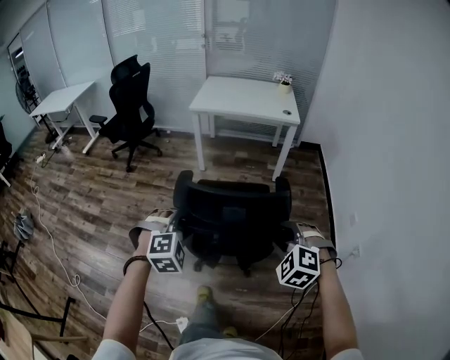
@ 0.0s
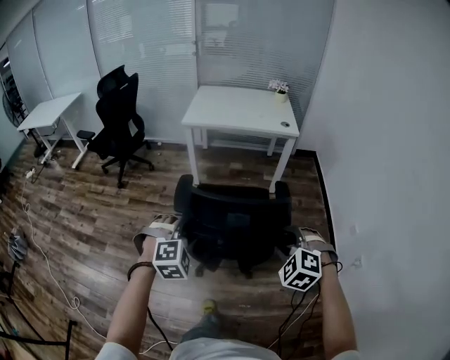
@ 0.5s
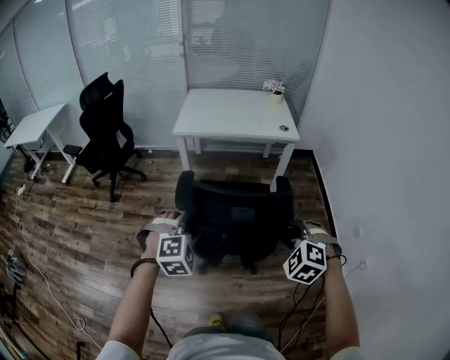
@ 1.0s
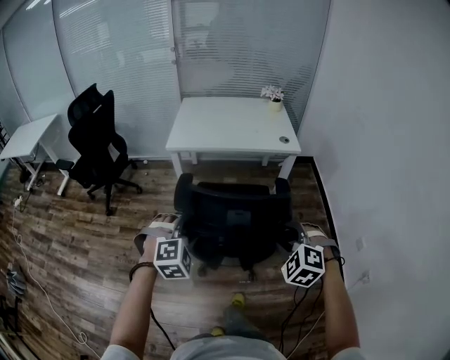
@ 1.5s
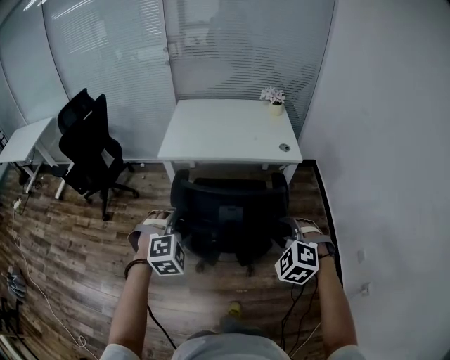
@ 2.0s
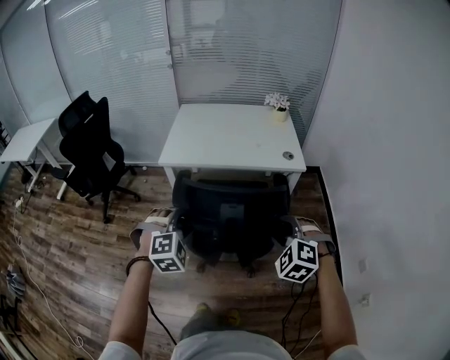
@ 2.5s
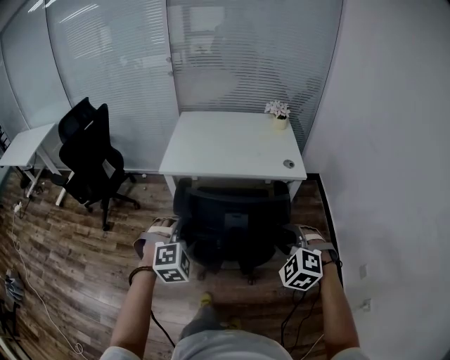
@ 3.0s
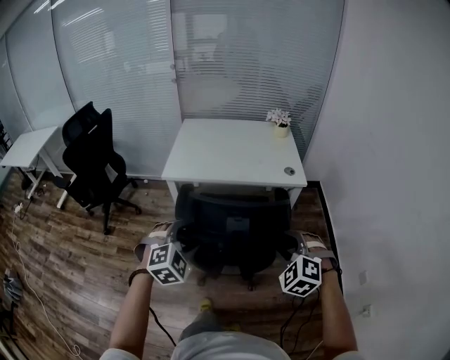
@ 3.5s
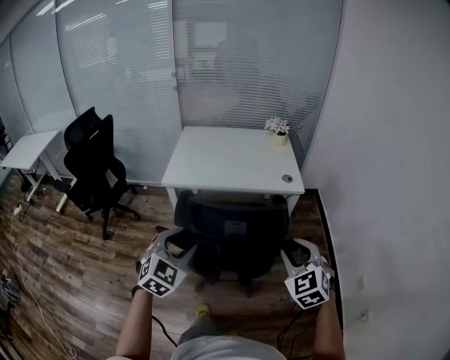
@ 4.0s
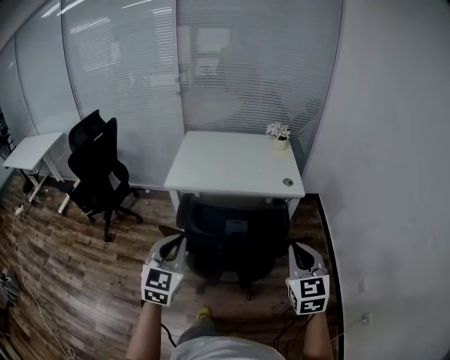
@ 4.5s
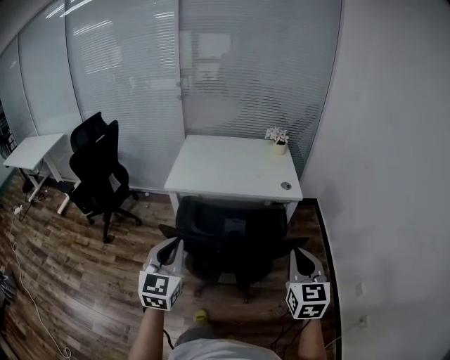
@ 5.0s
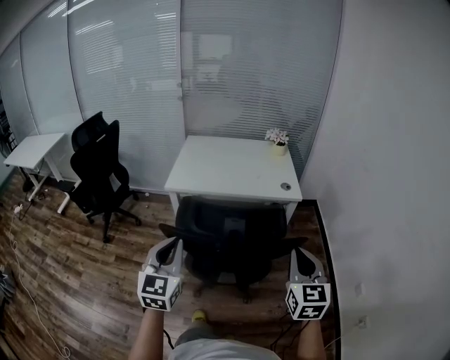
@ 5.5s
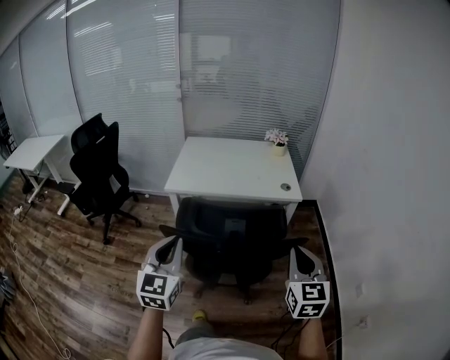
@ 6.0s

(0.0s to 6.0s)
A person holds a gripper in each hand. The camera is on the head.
0.0s - 2.0s: The pair of grippers is taken forward, approximately 50 cm.
2.0s - 4.0s: The grippers both shift upward by approximately 5 cm. The left gripper turns by roughly 40 degrees, while the right gripper turns by approximately 30 degrees.
4.0s - 6.0s: The right gripper goes some 5 cm upward, changes its angle by about 30 degrees, and closes up. The left gripper moves upward and backward, about 10 cm, changes its angle by some 40 degrees, and closes its fingers.

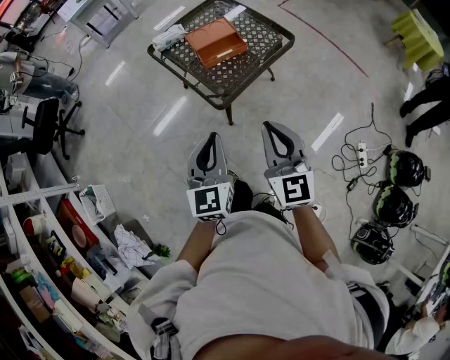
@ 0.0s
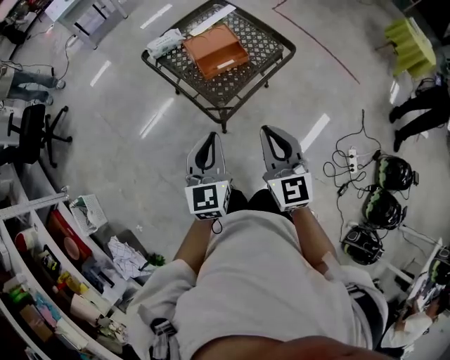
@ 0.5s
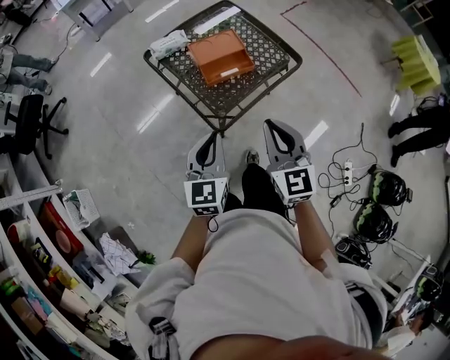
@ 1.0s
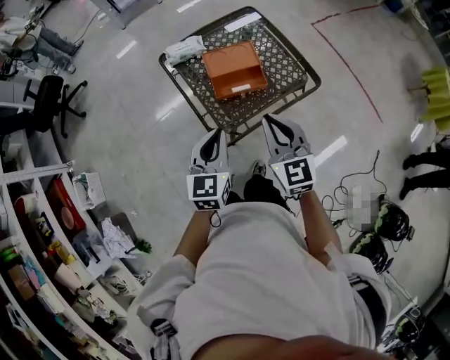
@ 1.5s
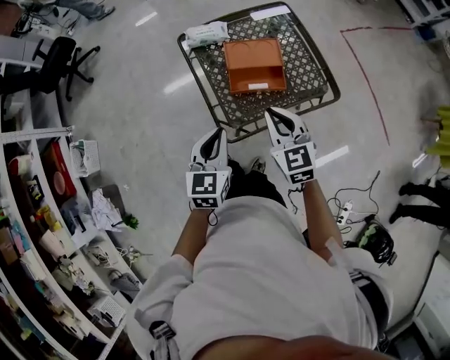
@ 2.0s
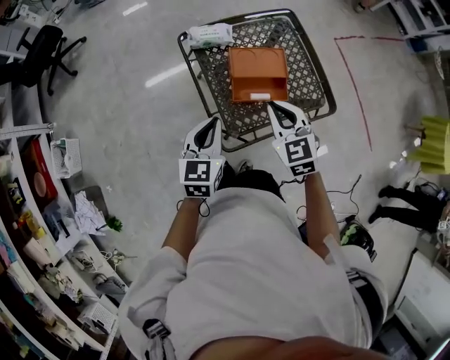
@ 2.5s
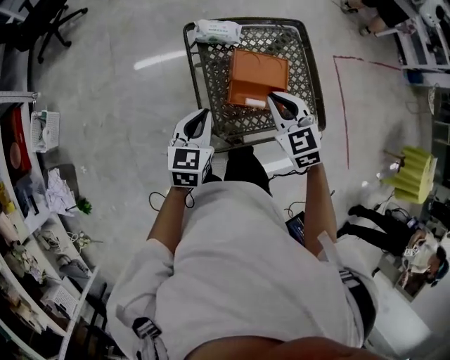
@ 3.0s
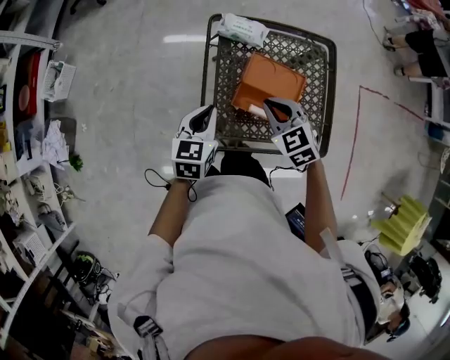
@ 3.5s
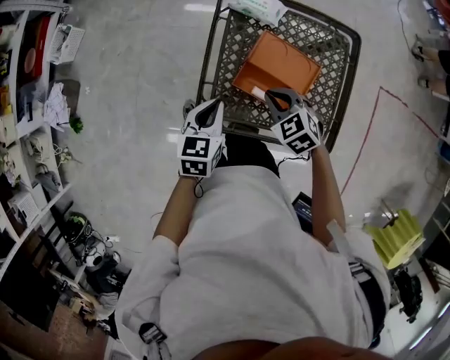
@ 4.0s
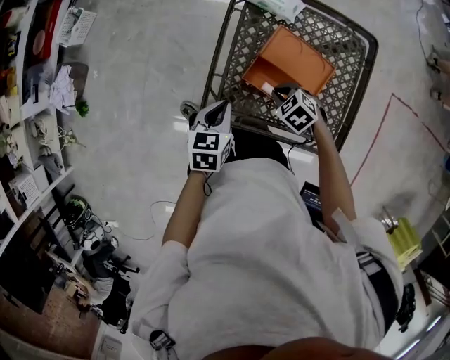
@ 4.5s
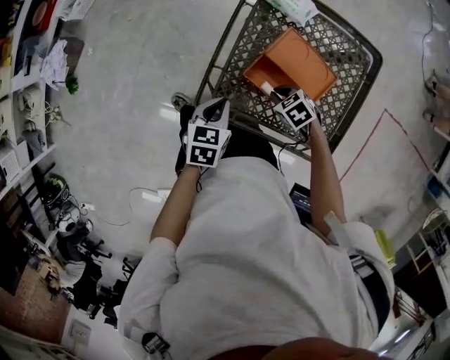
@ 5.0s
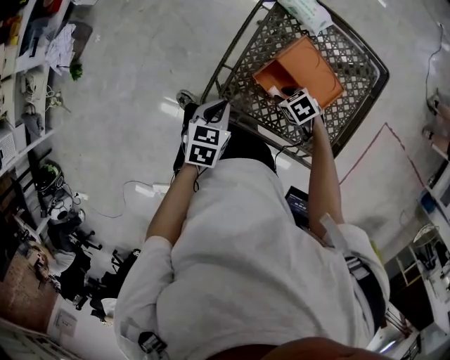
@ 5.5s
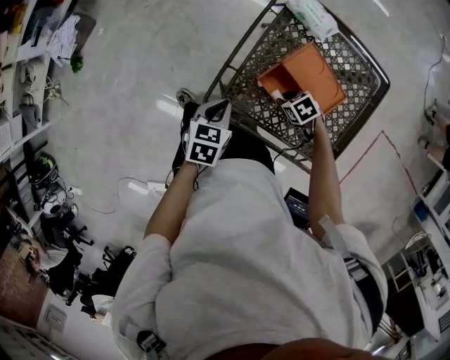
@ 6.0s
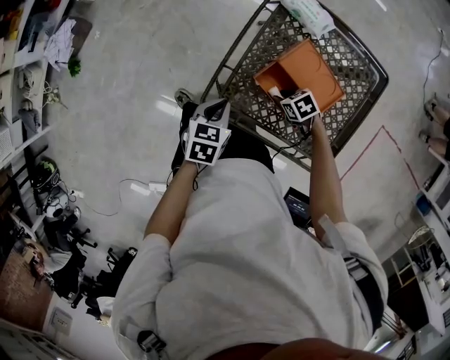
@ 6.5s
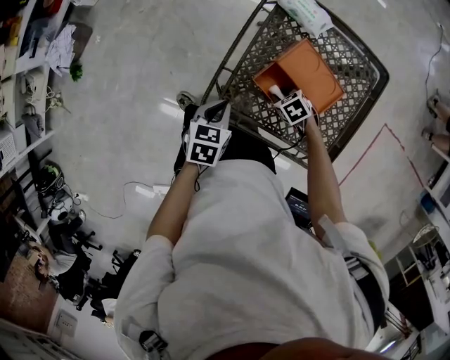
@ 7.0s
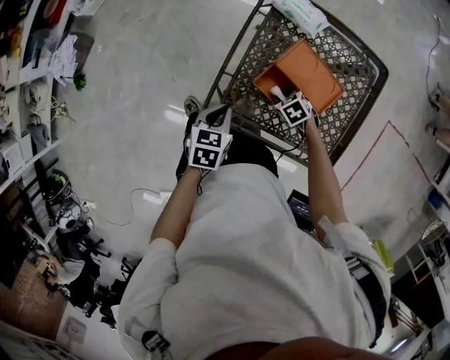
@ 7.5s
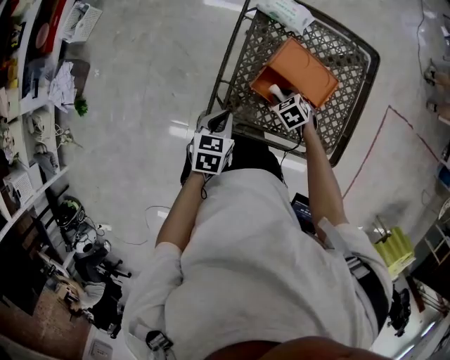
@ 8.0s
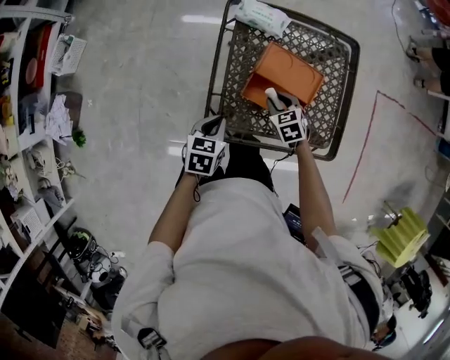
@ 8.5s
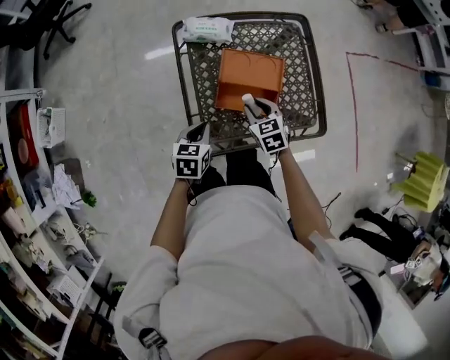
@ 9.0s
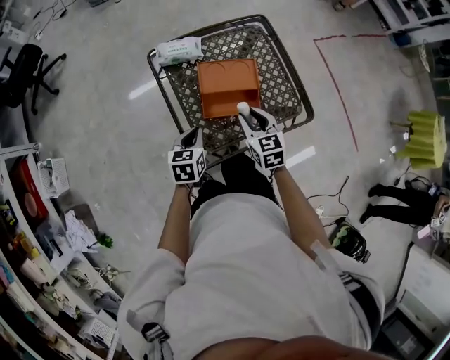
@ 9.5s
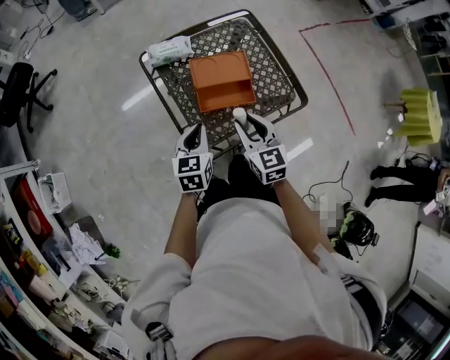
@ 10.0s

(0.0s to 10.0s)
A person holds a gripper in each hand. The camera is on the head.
0.0s - 2.0s: The grippers both shift forward by some 30 cm. The right gripper rotates roughly 30 degrees, while the left gripper rotates about 20 degrees.
2.0s - 4.0s: The right gripper ends up some 20 cm from where it was, and angles its fingers downward, by roughly 30 degrees. Meanwhile the left gripper ends up approximately 15 cm from where it was, and turns by roughly 30 degrees.
4.0s - 6.0s: The left gripper shifts roughly 10 cm downward. Meanwhile the right gripper is displaced downward by approximately 20 cm, and swivels approximately 30 degrees.
6.0s - 8.0s: The right gripper turns by roughly 20 degrees.
8.0s - 10.0s: The left gripper moves upward, some 10 cm, and turns by roughly 40 degrees. The right gripper is displaced upward by about 25 cm, and tilts its fingers approximately 40 degrees upward.

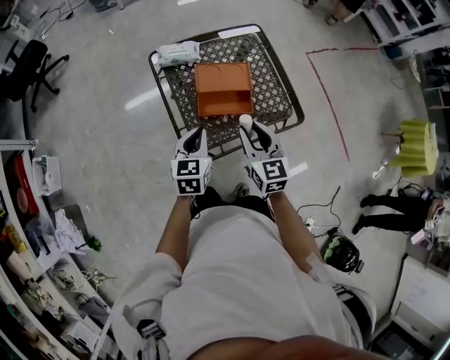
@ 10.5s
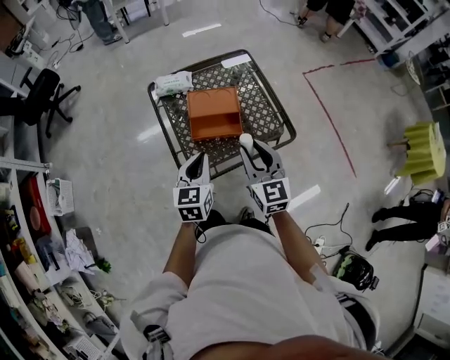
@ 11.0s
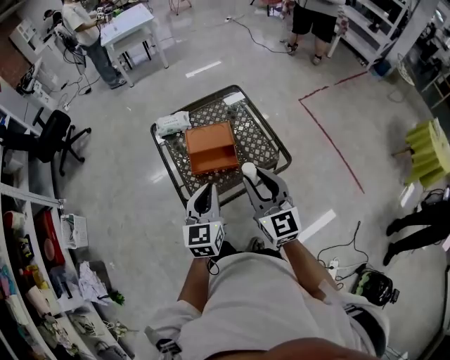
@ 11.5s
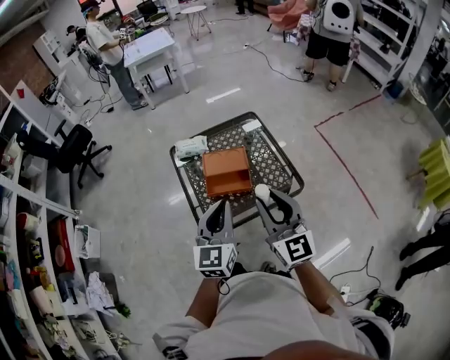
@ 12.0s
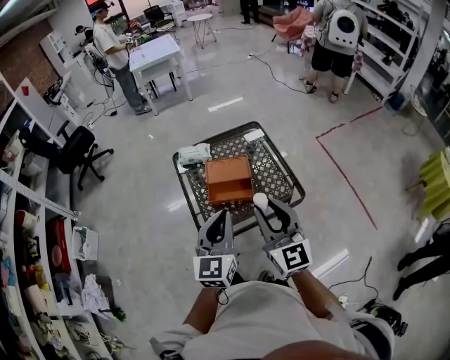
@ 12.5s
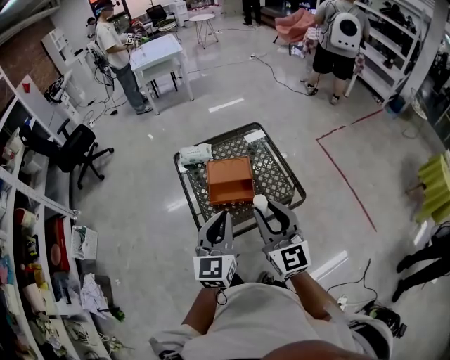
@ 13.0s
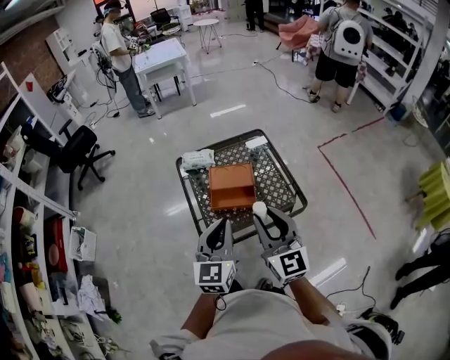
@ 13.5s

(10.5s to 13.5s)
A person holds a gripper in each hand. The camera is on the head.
10.5s - 12.0s: The right gripper goes about 25 cm upward, backward and to the right, and swivels approximately 30 degrees, while the left gripper travels upward, to the right and backward by some 25 cm, and rotates roughly 30 degrees.
12.0s - 13.5s: The grippers make only small movements.

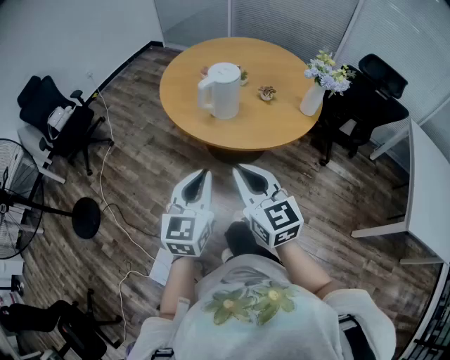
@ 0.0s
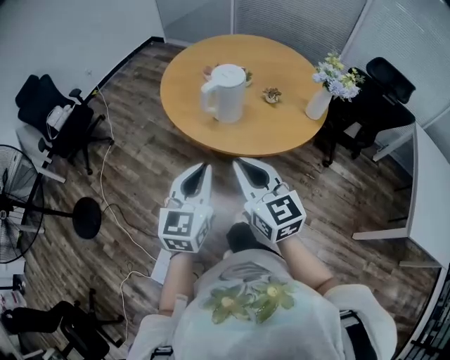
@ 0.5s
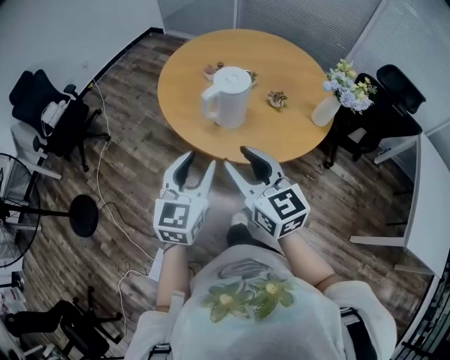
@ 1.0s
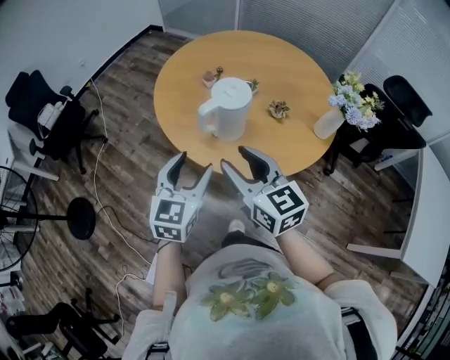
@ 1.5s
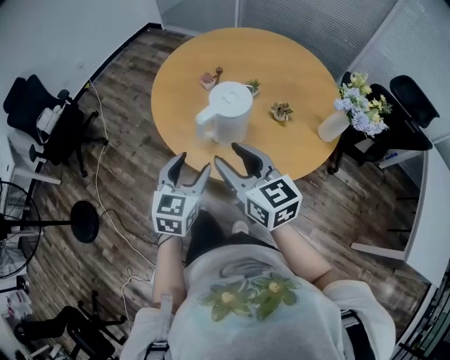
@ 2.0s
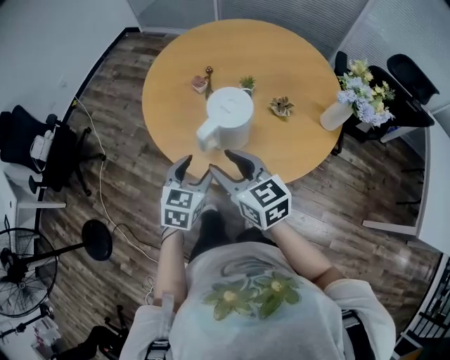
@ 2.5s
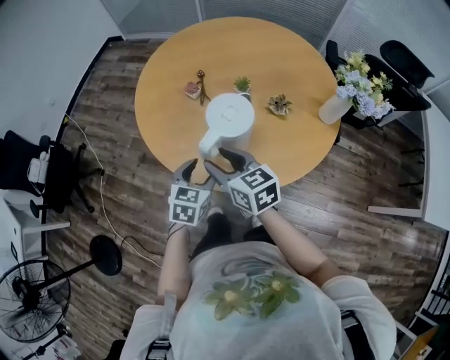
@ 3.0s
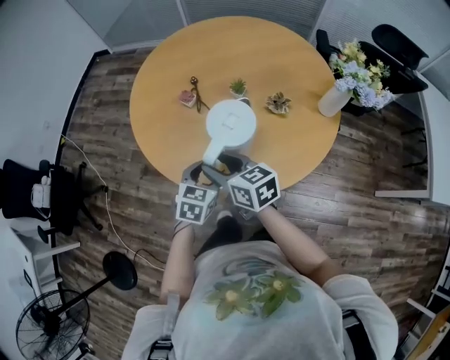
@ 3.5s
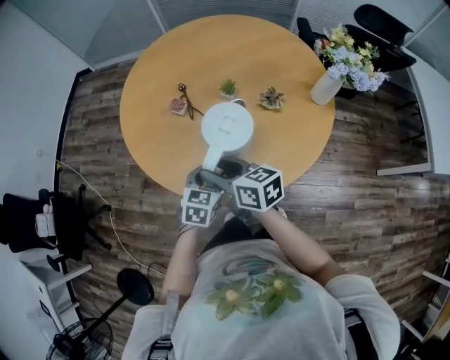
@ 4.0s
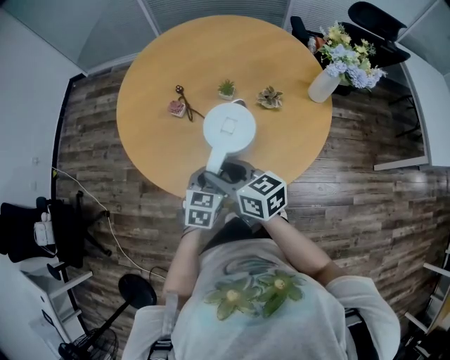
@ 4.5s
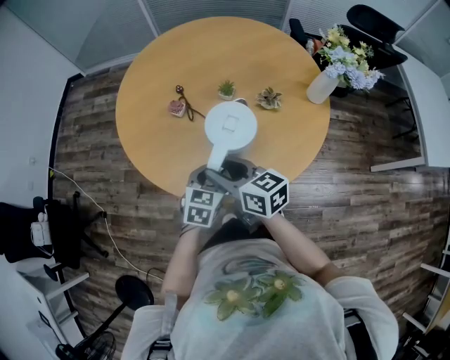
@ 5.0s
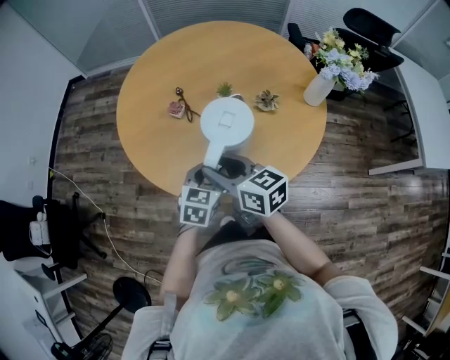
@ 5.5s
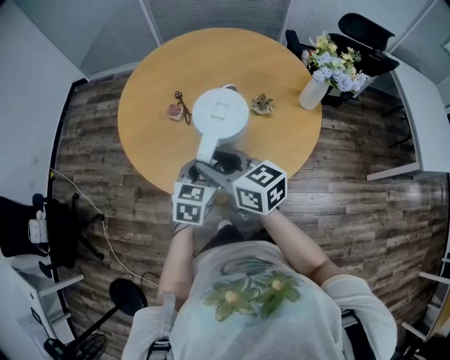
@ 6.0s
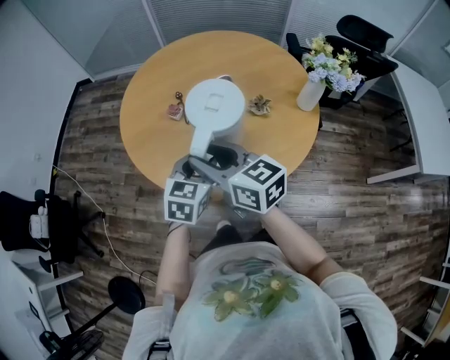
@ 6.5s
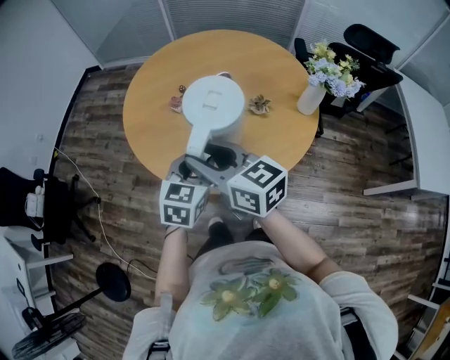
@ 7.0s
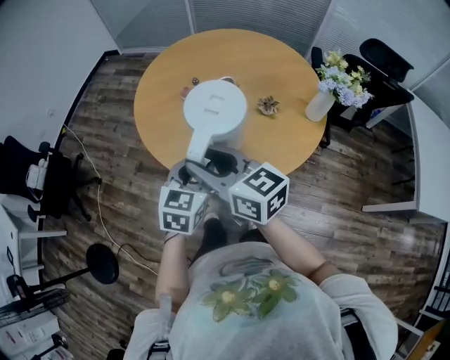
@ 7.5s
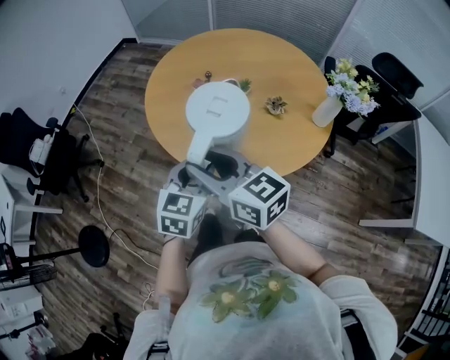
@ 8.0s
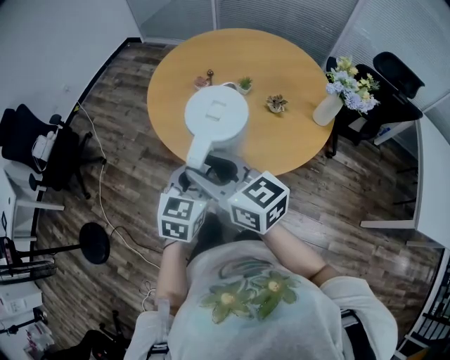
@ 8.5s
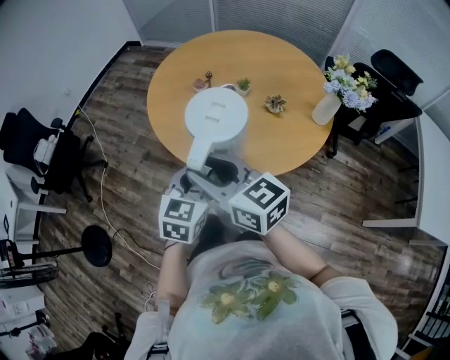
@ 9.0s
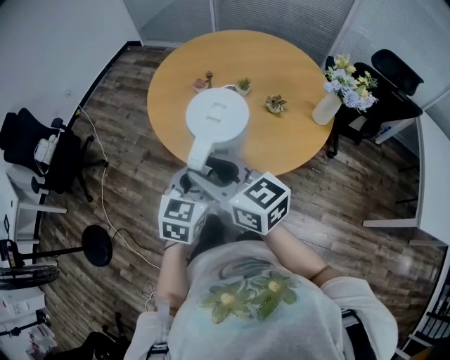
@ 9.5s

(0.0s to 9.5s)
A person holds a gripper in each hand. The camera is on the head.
0.0s - 2.0s: Both grippers travel together forward, about 25 cm. The right gripper opens. Meanwhile the left gripper opens up.
2.0s - 4.0s: The left gripper heads downward and forward, covering about 20 cm, and changes its angle by approximately 40 degrees; the right gripper is displaced forward, downward and to the left by some 20 cm, and rotates some 30 degrees.
4.0s - 5.5s: There are only small adjustments of the grippers.
5.5s - 7.5s: The two grippers go approximately 15 cm upward and backward.
7.5s - 9.5s: The grippers both shift backward by about 5 cm.
